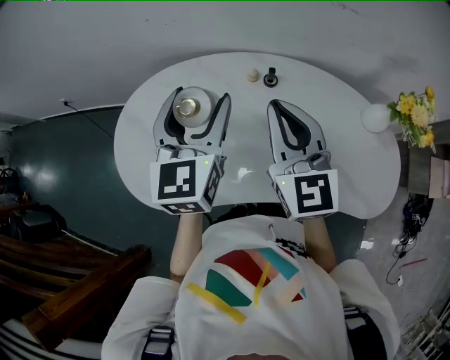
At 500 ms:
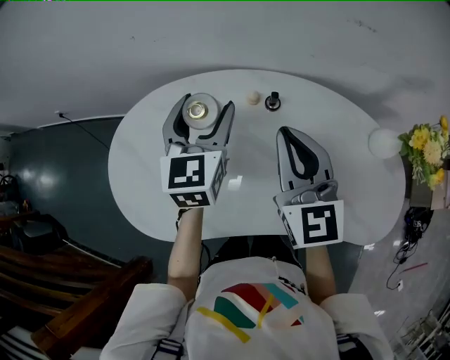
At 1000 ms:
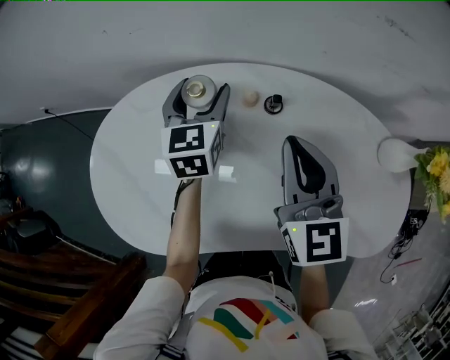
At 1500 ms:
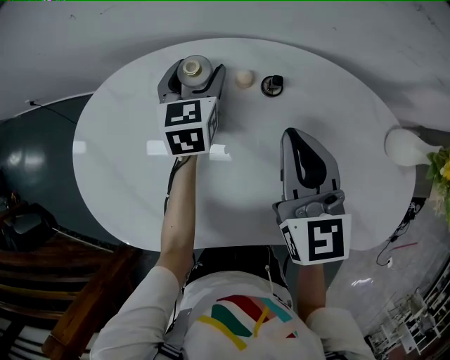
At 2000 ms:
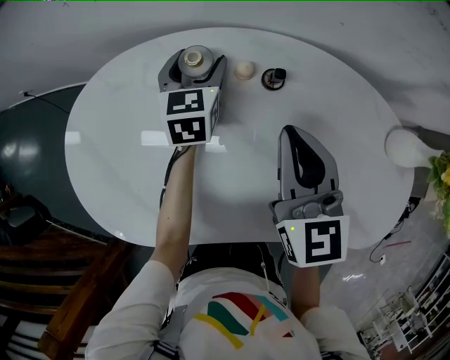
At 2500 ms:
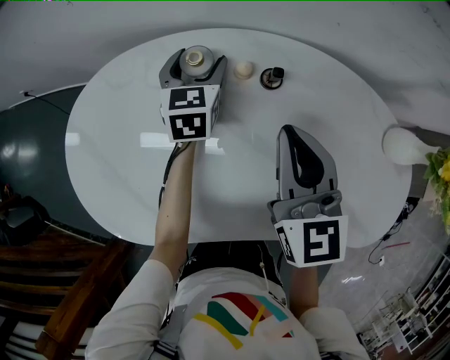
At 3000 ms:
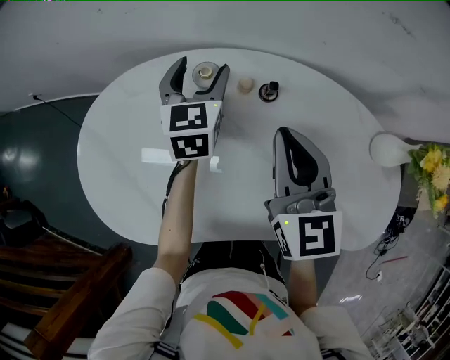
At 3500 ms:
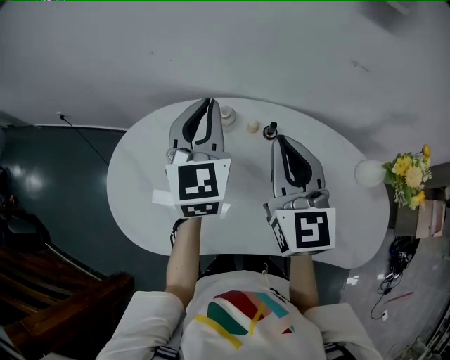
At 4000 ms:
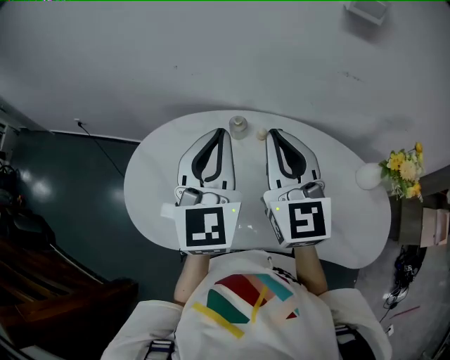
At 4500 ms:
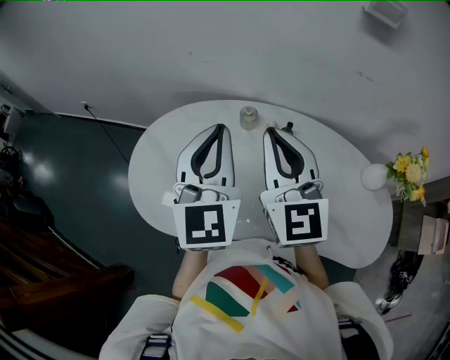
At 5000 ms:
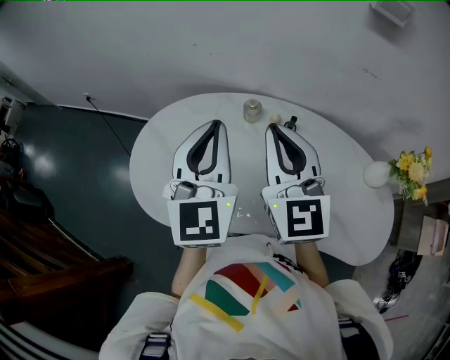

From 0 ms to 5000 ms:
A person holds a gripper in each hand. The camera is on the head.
From 0 ms to 2500 ms: The left gripper shifts some 35 cm downward and forward, and changes its angle by roughly 20 degrees, while the right gripper travels downward and forward by about 20 cm.
From 2500 ms to 5000 ms: The left gripper heads upward and backward, covering about 40 cm, angles its fingers upward, by roughly 30 degrees, and closes its fingers, while the right gripper shifts roughly 25 cm upward and to the left, and rotates about 30 degrees.

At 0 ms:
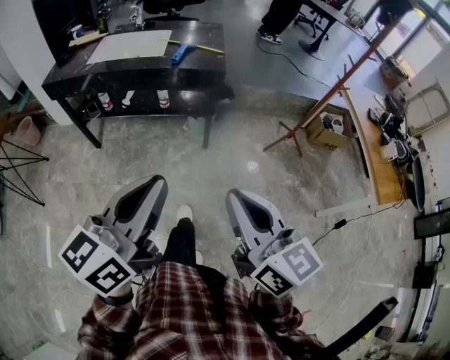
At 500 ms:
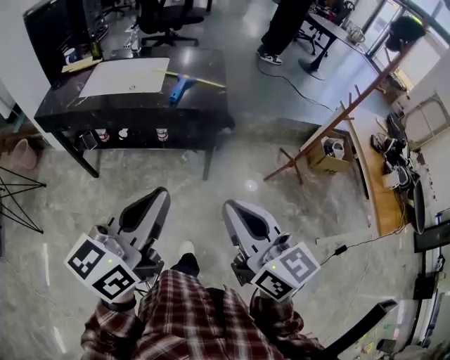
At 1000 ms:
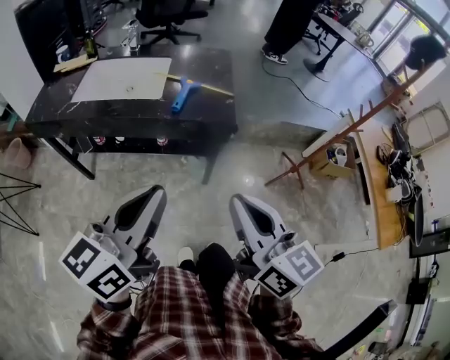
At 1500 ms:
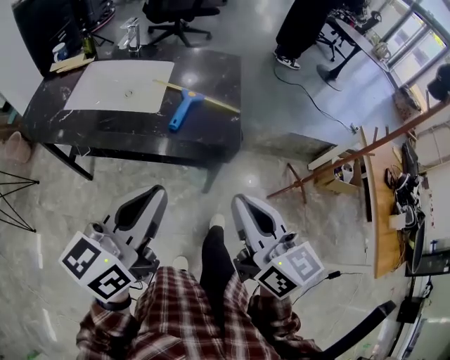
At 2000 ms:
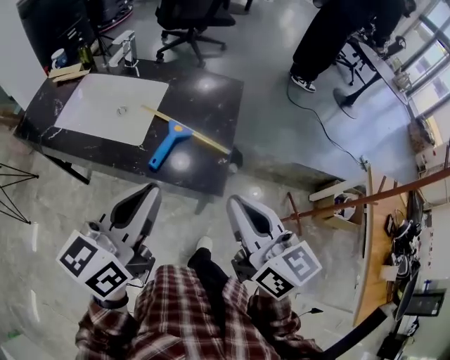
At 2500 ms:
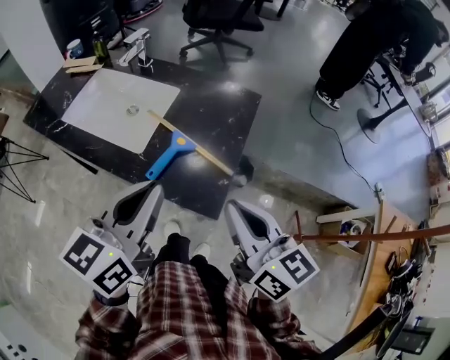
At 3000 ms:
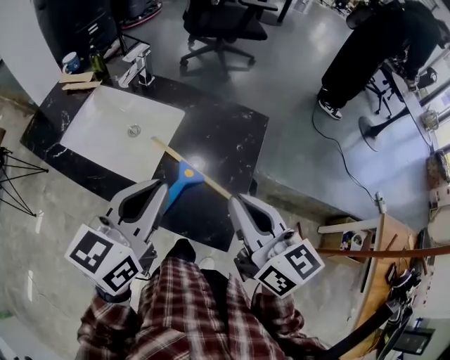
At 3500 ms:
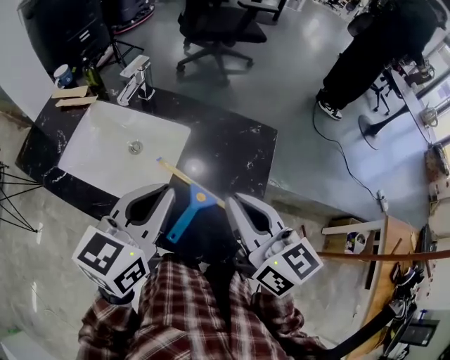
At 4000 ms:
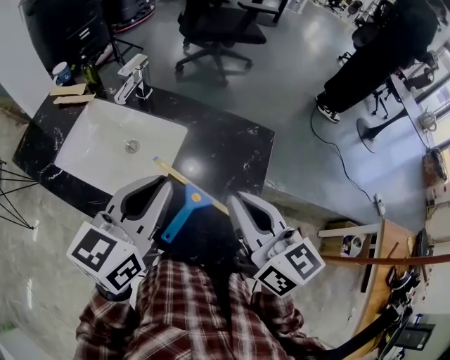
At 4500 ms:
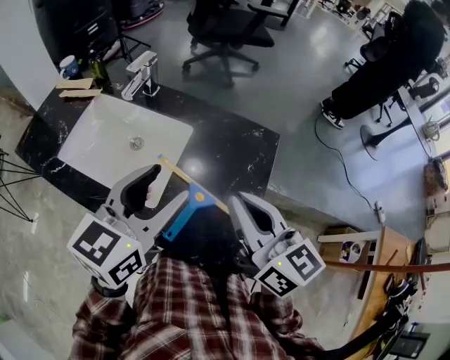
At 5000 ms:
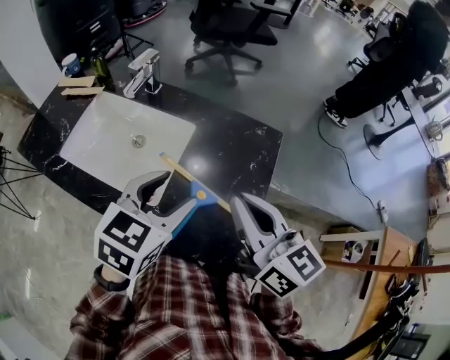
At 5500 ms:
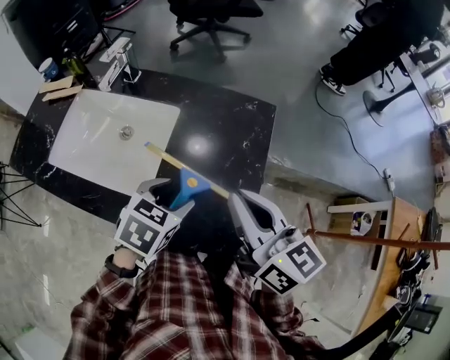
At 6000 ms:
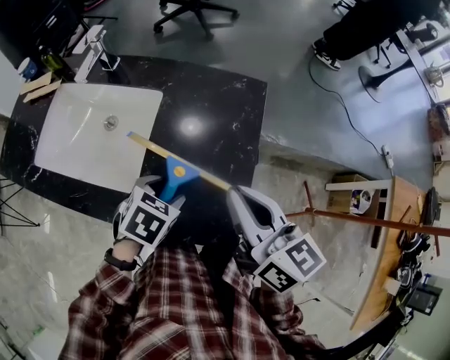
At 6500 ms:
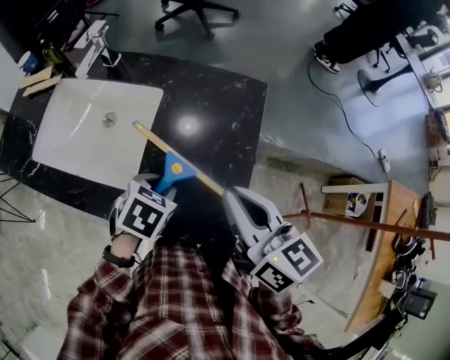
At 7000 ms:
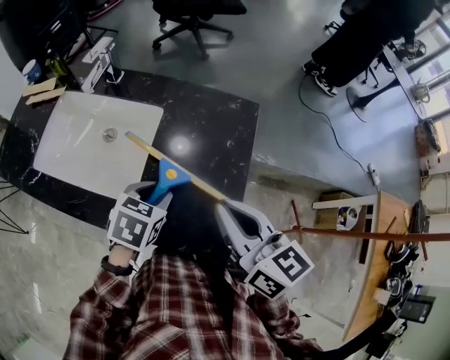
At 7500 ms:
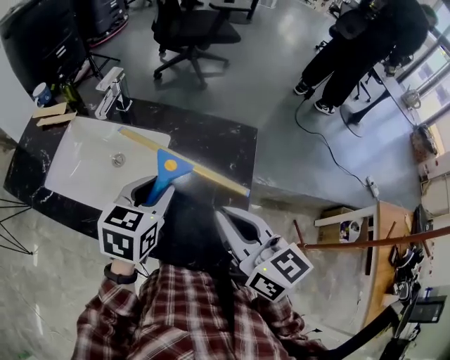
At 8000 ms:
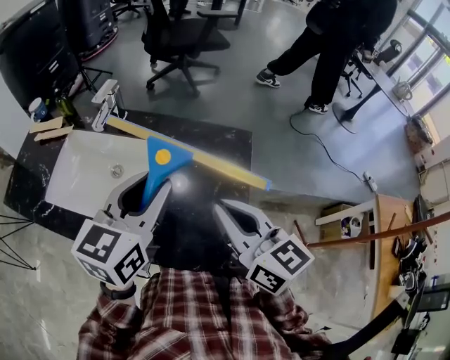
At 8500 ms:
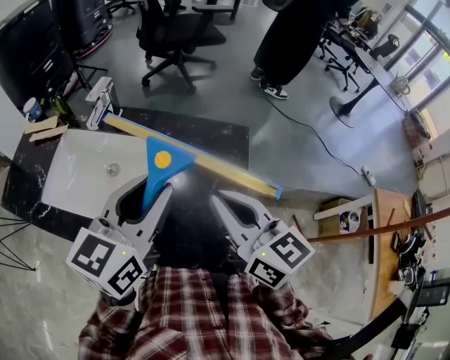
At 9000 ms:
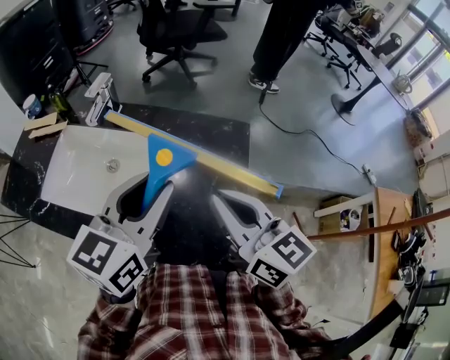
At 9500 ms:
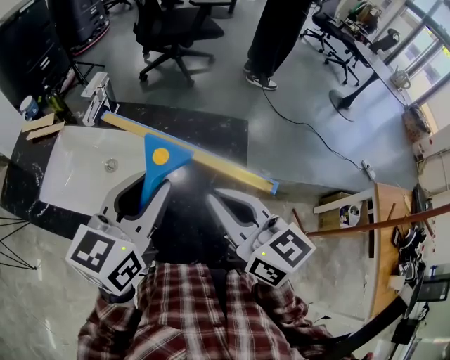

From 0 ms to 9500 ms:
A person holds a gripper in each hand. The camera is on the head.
From 0 ms to 2000 ms: The two grippers travel together, forward, about 50 cm.
From 2000 ms to 4000 ms: The two grippers go some 25 cm forward.
From 4000 ms to 5500 ms: The left gripper goes roughly 20 cm downward, angles its fingers downward, by roughly 40 degrees, and opens its fingers.
From 5500 ms to 7500 ms: The left gripper shifts roughly 10 cm upward, changes its angle by about 20 degrees, and closes up.
From 7500 ms to 9500 ms: The left gripper is displaced upward by about 10 cm, and changes its angle by roughly 20 degrees.

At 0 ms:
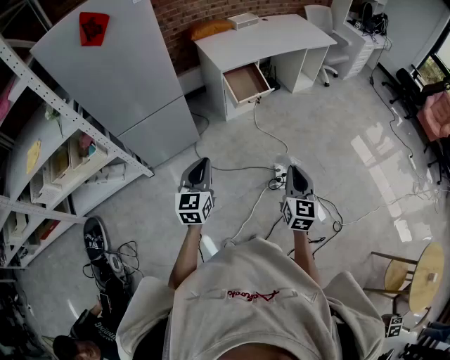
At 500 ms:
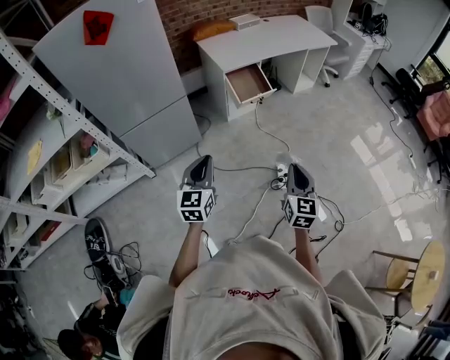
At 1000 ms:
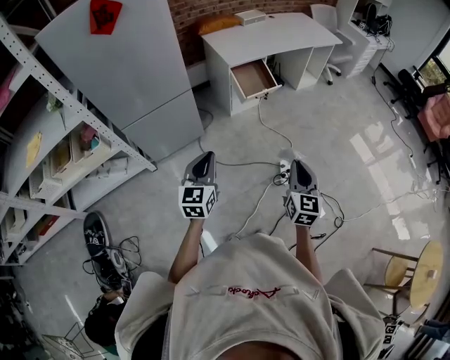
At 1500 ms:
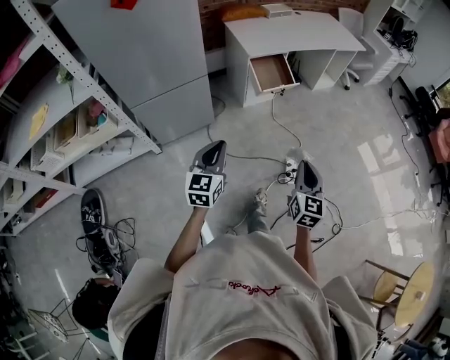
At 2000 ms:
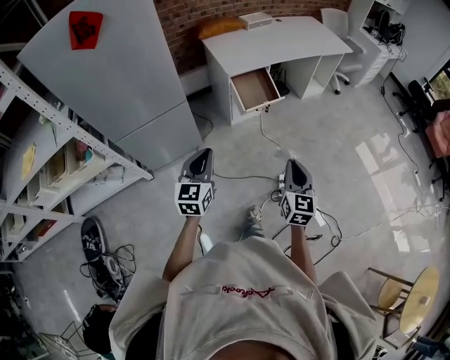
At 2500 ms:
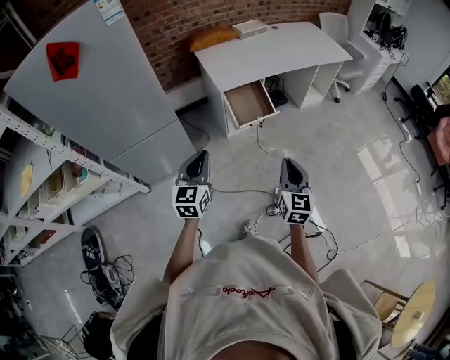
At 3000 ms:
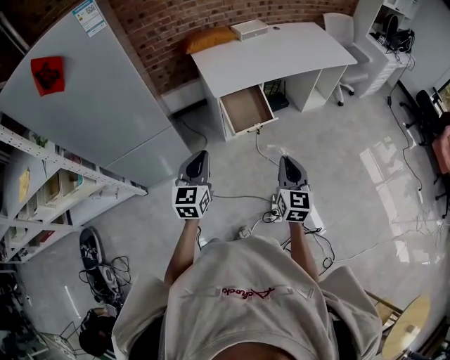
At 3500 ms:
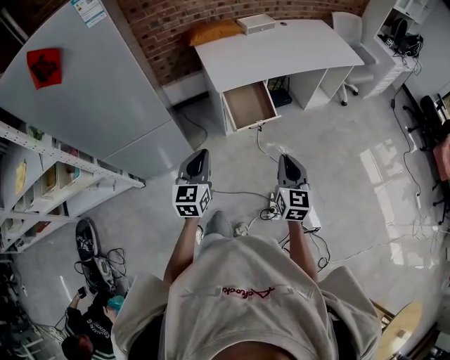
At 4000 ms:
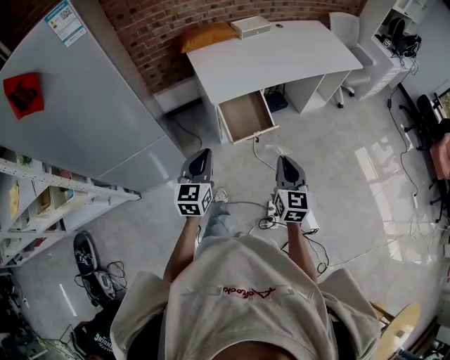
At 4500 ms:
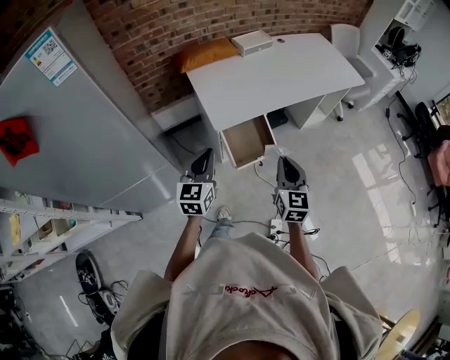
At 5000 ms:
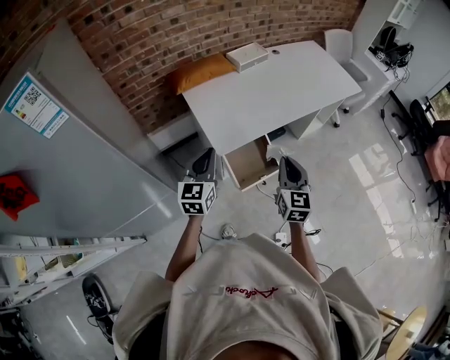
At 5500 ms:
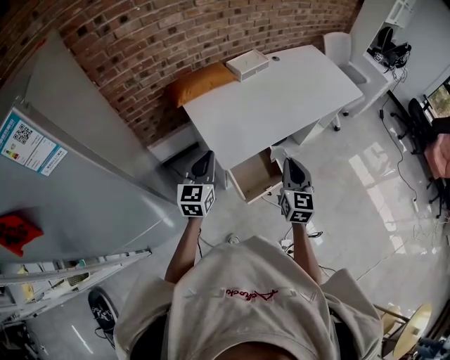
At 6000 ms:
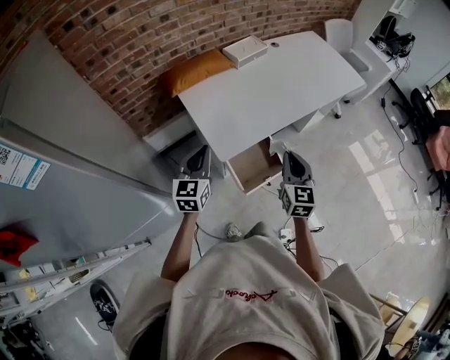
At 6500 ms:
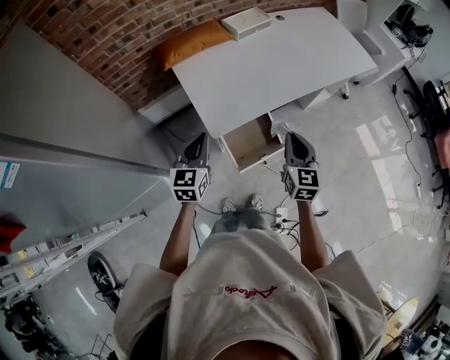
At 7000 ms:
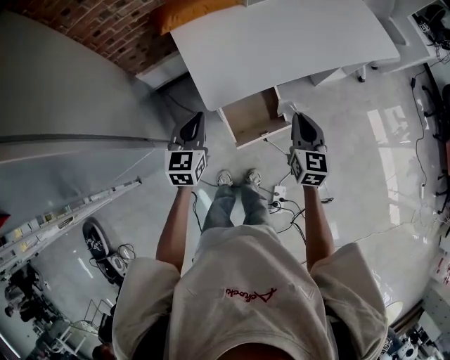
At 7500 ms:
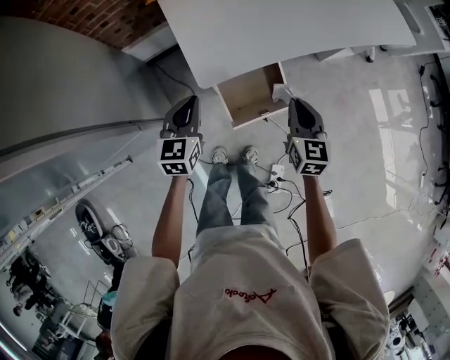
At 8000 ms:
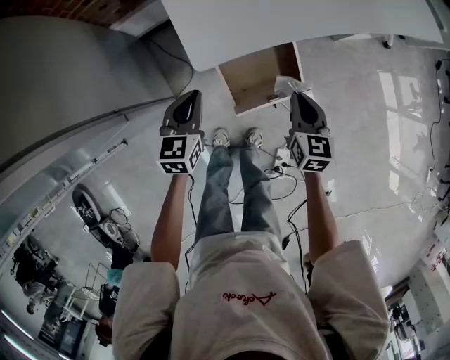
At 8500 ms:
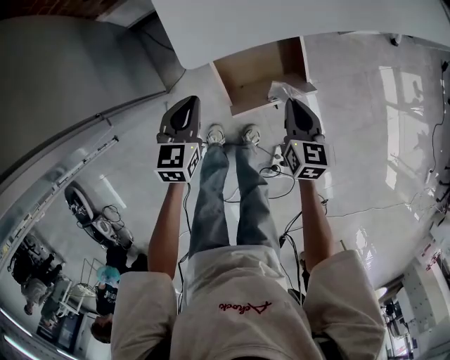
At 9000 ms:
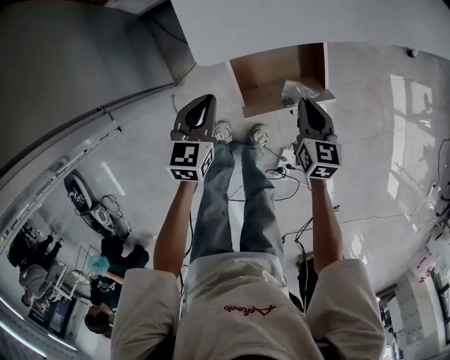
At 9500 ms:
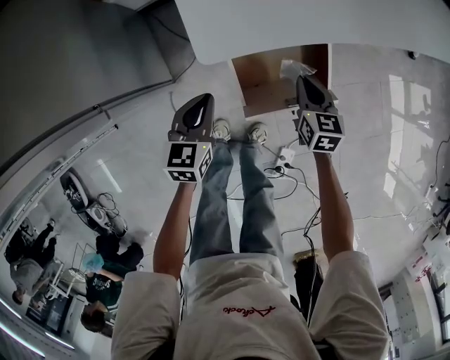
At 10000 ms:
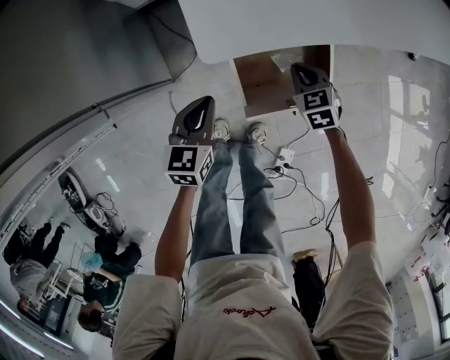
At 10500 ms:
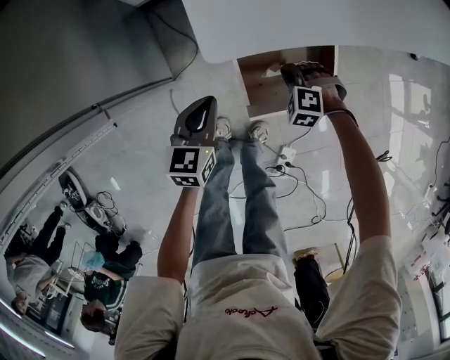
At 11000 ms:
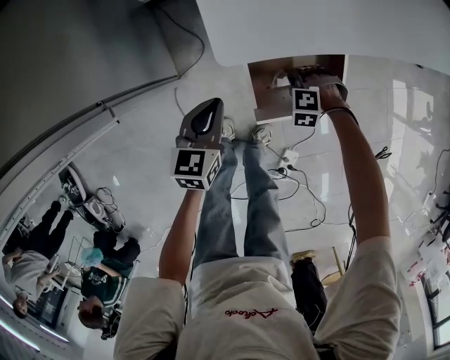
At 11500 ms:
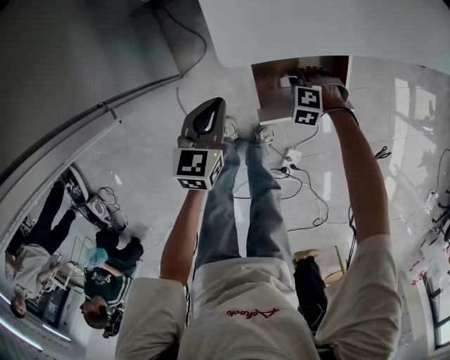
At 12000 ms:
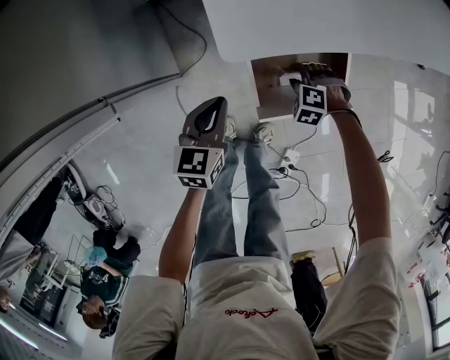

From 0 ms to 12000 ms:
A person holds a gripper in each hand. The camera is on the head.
From 0 ms to 2000 ms: Both grippers move forward, about 15 cm.
From 2000 ms to 4000 ms: Both grippers travel together forward, approximately 30 cm.
From 4000 ms to 6000 ms: Both grippers move forward, roughly 30 cm.
From 6000 ms to 8000 ms: Both grippers move downward, approximately 25 cm. The right gripper swivels some 20 degrees; the left gripper swivels roughly 20 degrees.
From 8000 ms to 10000 ms: The right gripper shifts approximately 20 cm downward and forward, and turns by approximately 40 degrees. The left gripper goes roughly 10 cm downward.
From 10000 ms to 12000 ms: The right gripper is displaced downward by approximately 10 cm, rolls counterclockwise, seen from behind, by some 50 degrees, and opens up.
